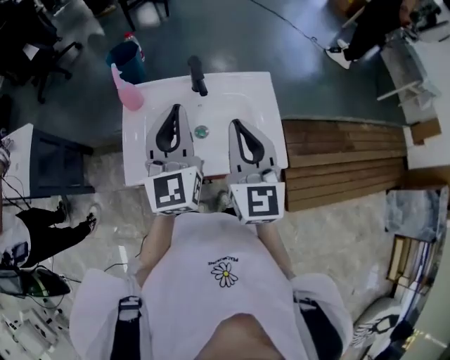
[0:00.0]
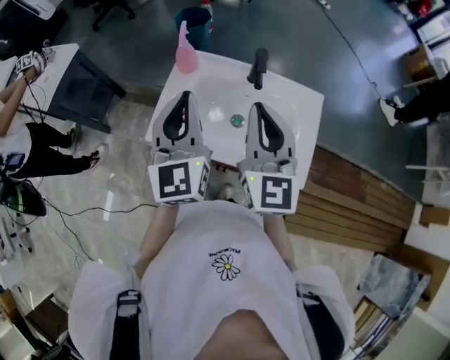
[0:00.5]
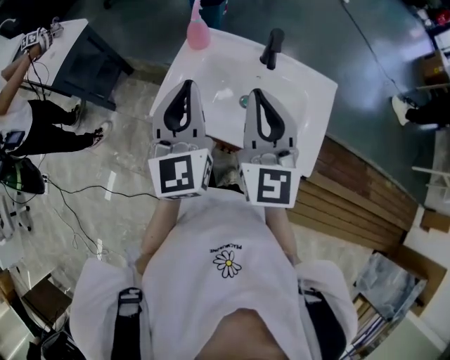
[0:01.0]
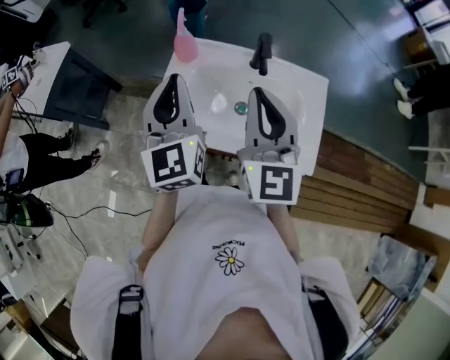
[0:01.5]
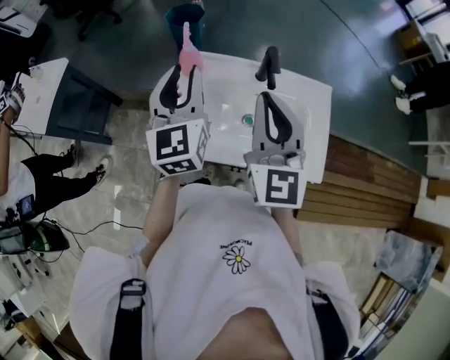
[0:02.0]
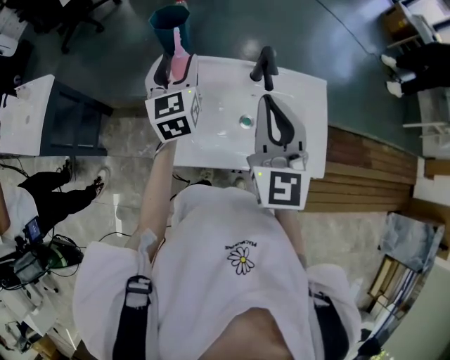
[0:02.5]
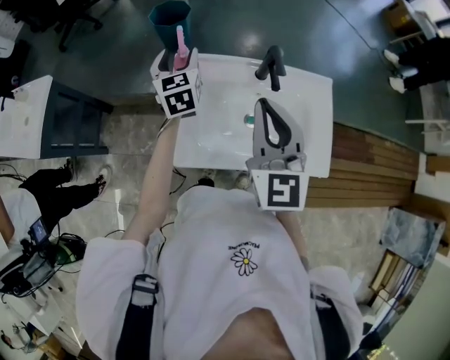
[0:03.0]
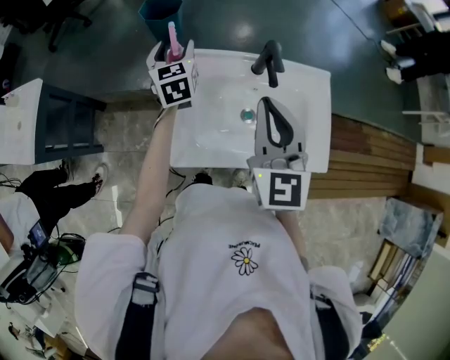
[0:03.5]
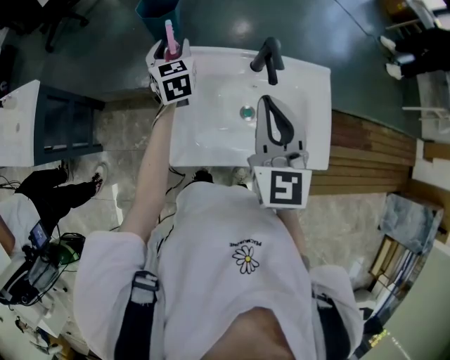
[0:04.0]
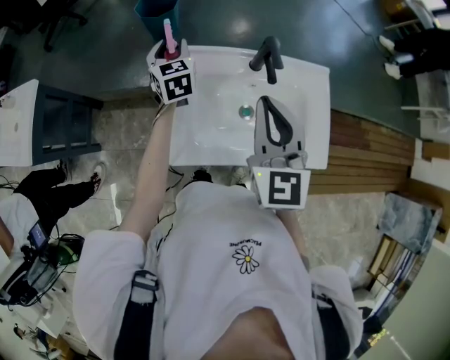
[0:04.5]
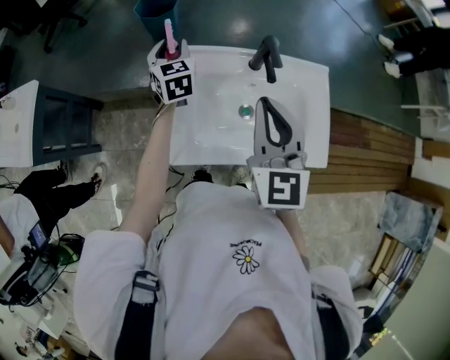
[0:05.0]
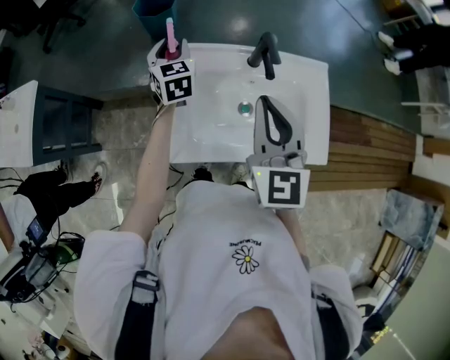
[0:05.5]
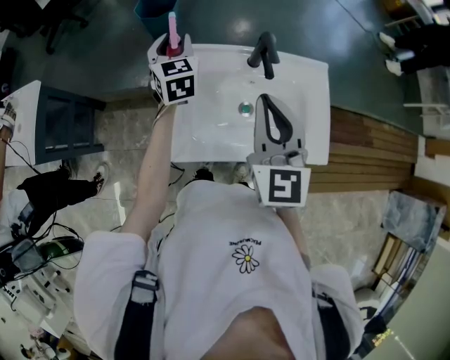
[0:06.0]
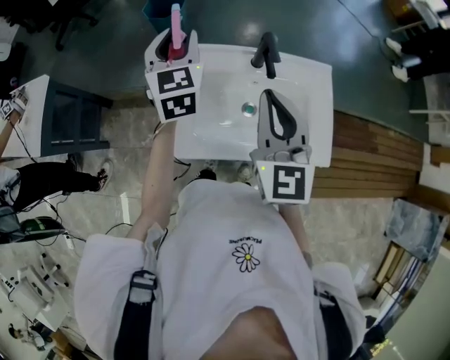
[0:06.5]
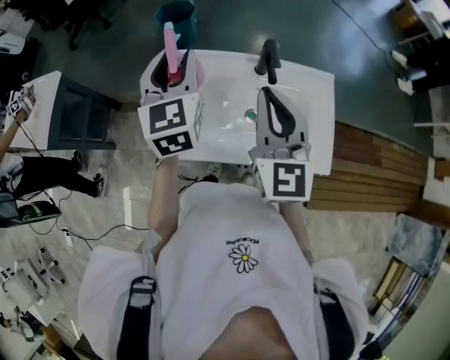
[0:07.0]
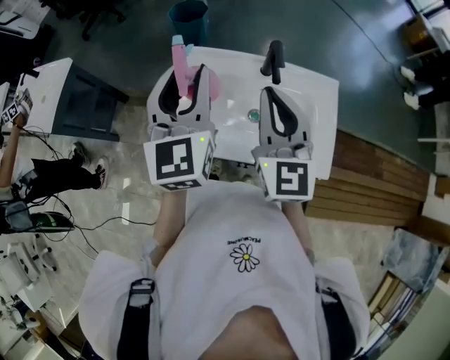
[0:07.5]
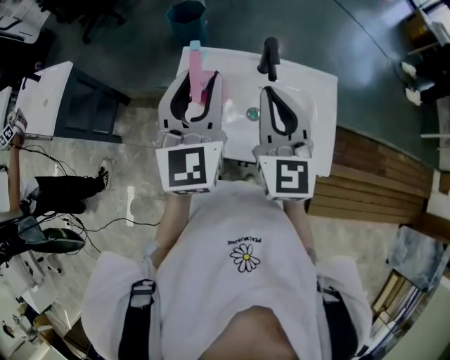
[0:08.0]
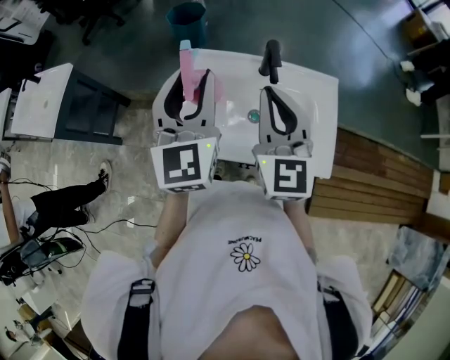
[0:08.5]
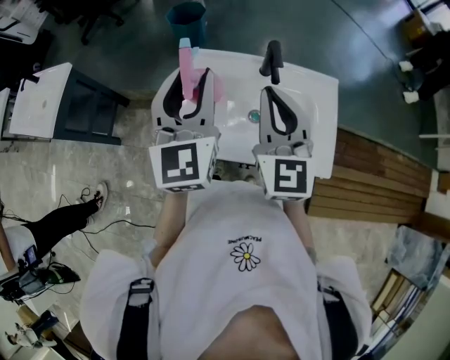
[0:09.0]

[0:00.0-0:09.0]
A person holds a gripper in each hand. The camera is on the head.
0:00.0 to 0:02.0: Both grippers travel together to the left and forward, some 15 cm. The left gripper opens.
0:02.0 to 0:04.5: The right gripper heads downward, covering about 5 cm; the left gripper heads forward and downward, covering some 25 cm, changes its angle by approximately 20 degrees, and opens, then closes once more.
0:04.5 to 0:07.0: The left gripper moves upward and backward, approximately 20 cm.
0:07.0 to 0:09.0: The left gripper travels backward by roughly 10 cm.

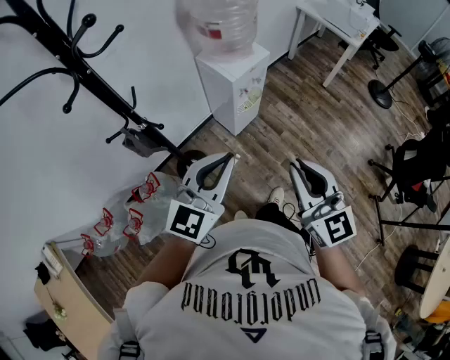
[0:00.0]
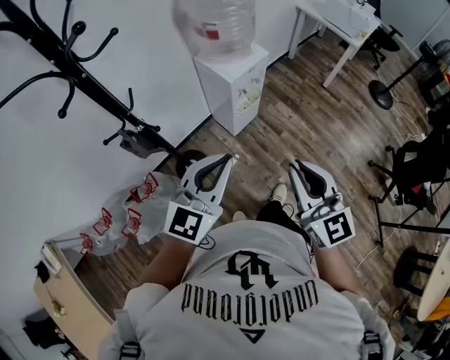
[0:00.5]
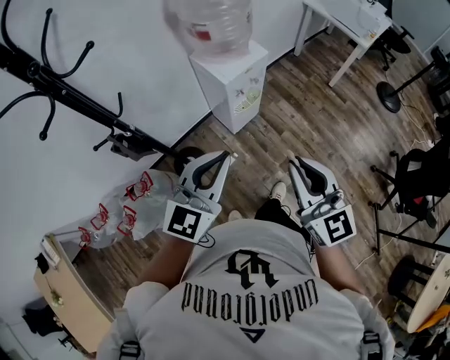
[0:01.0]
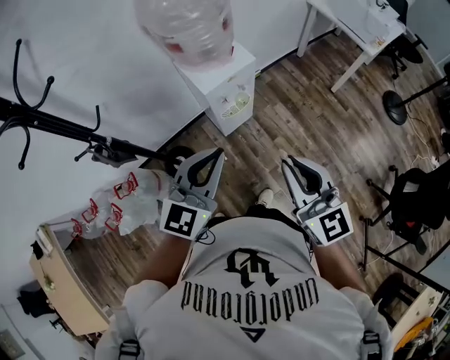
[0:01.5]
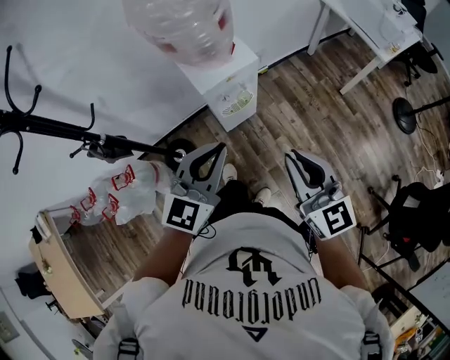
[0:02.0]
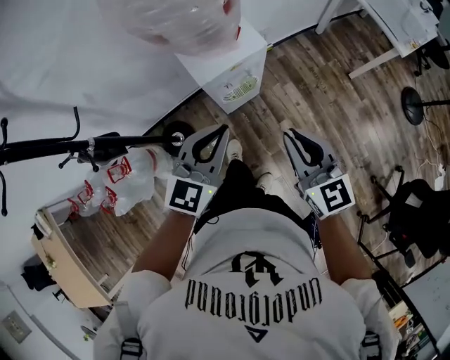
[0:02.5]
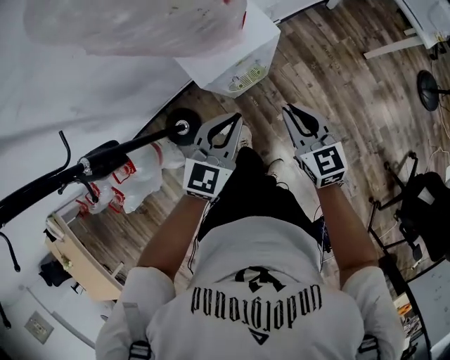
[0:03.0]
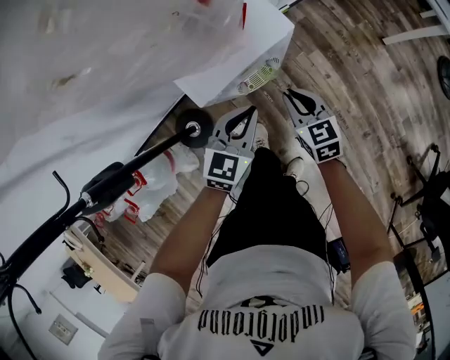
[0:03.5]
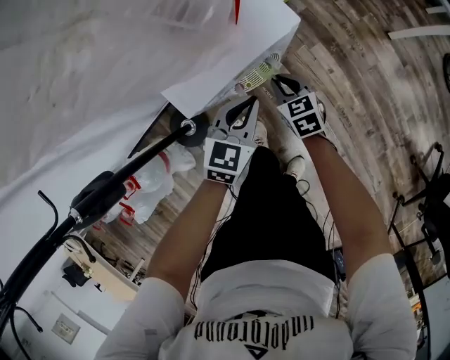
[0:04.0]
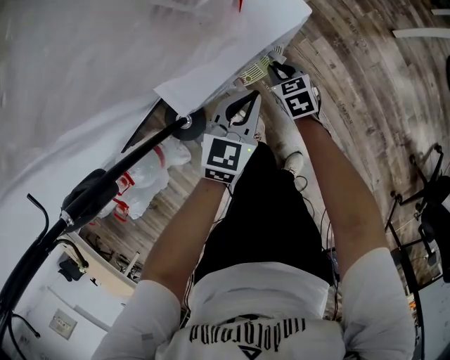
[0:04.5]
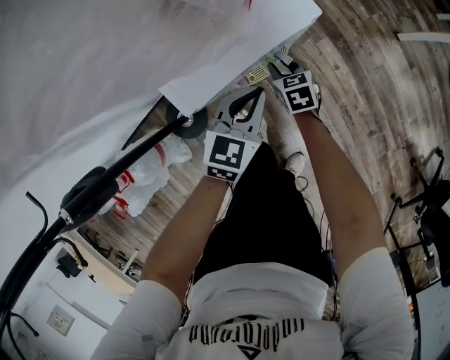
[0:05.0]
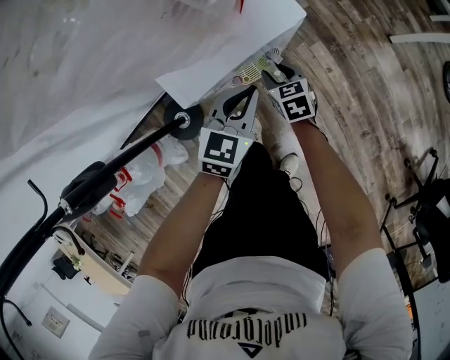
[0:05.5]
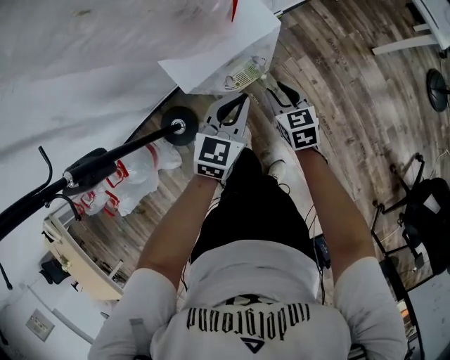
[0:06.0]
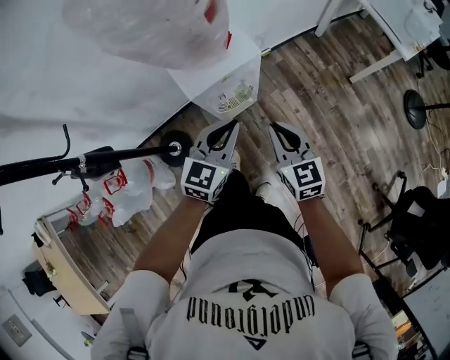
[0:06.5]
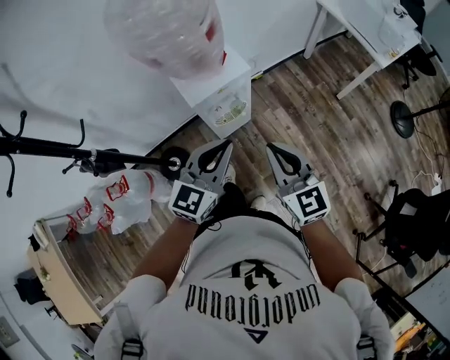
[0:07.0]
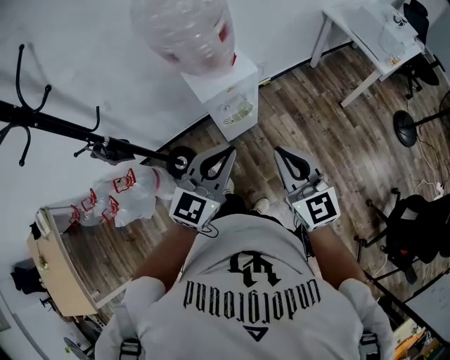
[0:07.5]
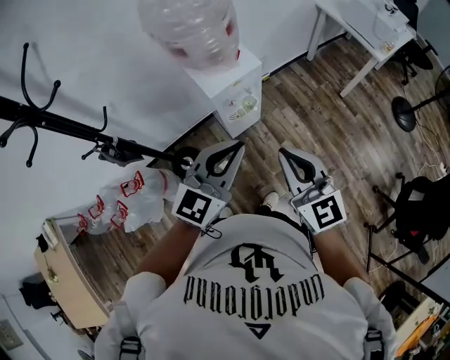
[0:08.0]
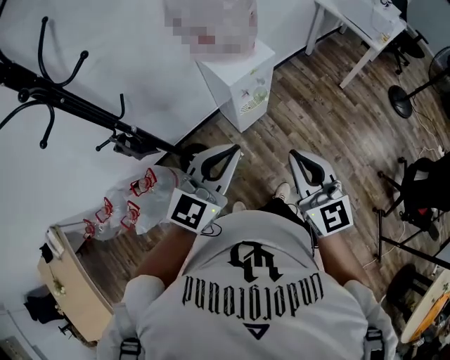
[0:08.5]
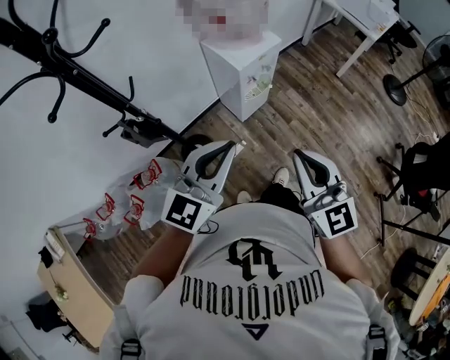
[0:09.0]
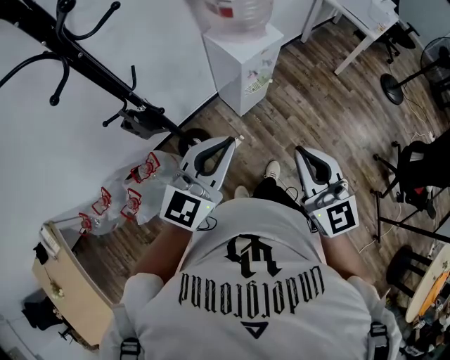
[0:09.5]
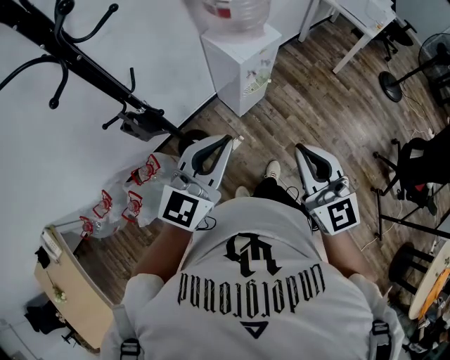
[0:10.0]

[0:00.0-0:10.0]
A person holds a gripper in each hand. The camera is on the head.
0:00.0 to 0:02.0: The grippers both shift forward and to the right by approximately 30 cm.
0:02.0 to 0:04.0: The two grippers go approximately 60 cm downward and forward. The left gripper turns by roughly 30 degrees. The right gripper tips its fingers downward by some 40 degrees.
0:04.0 to 0:06.0: The right gripper travels upward and backward by about 10 cm. Meanwhile the left gripper goes roughly 10 cm upward.
0:06.0 to 0:08.0: Both grippers move upward and backward, about 50 cm. The right gripper angles its fingers upward, by about 30 degrees, and closes up. Meanwhile the left gripper swivels approximately 20 degrees.
0:08.0 to 0:10.0: The two grippers go roughly 25 cm to the left and backward.

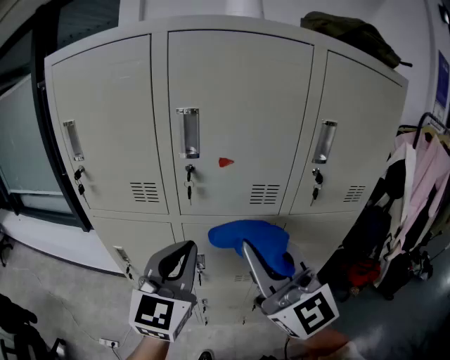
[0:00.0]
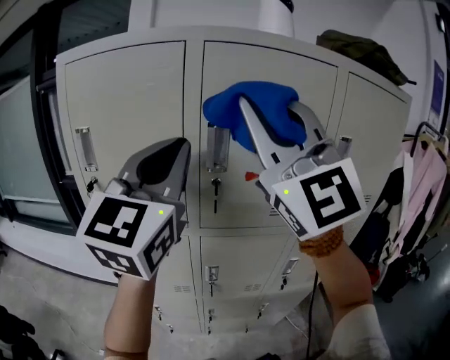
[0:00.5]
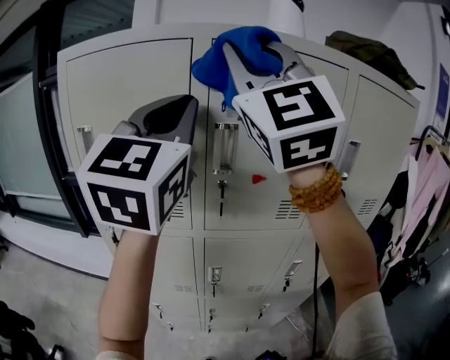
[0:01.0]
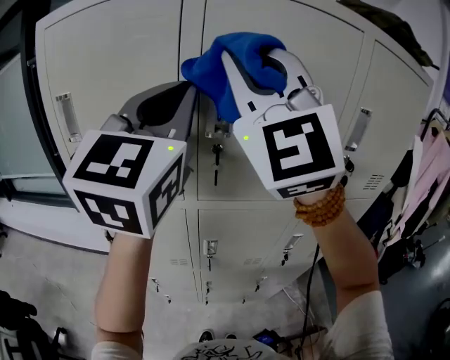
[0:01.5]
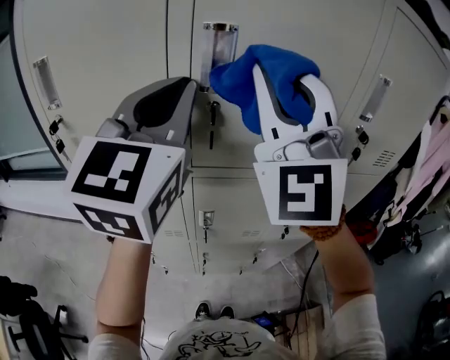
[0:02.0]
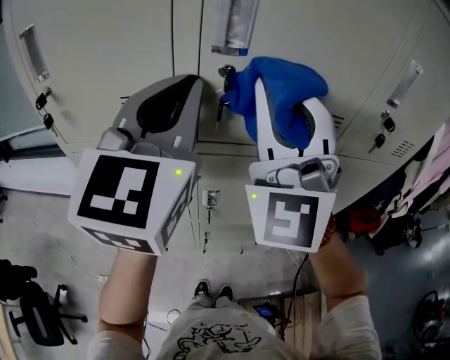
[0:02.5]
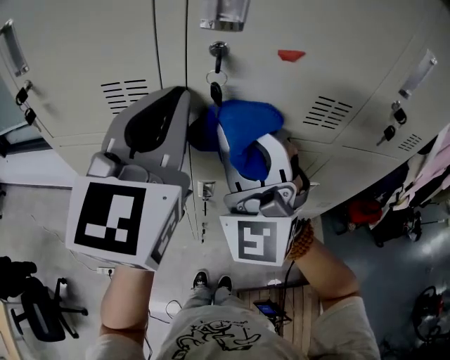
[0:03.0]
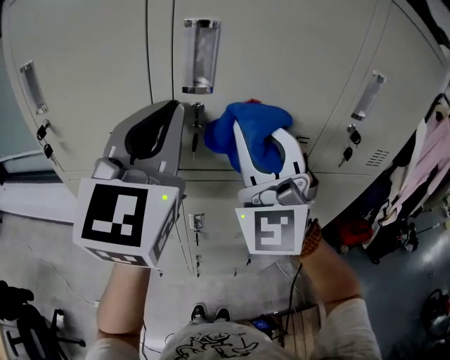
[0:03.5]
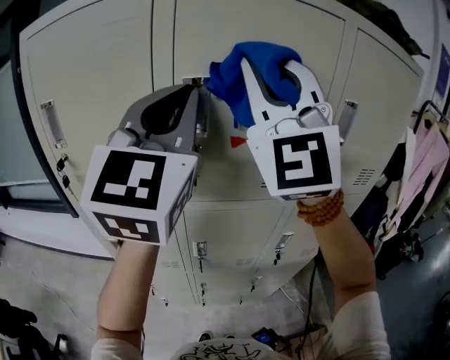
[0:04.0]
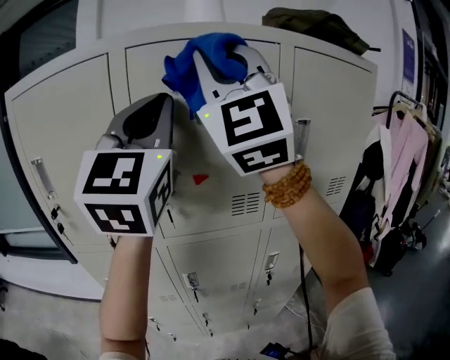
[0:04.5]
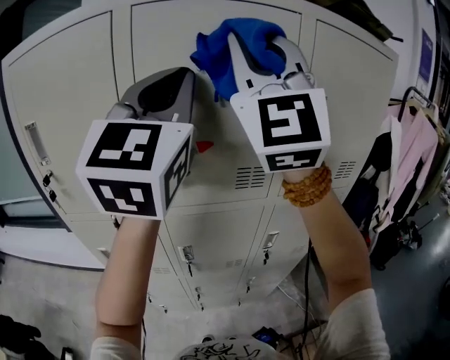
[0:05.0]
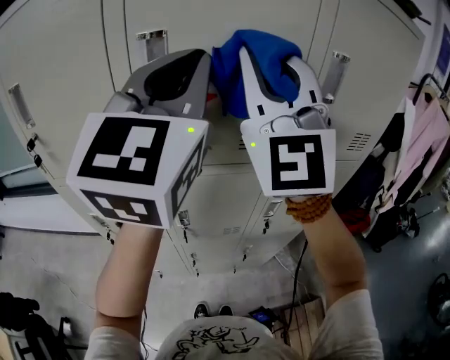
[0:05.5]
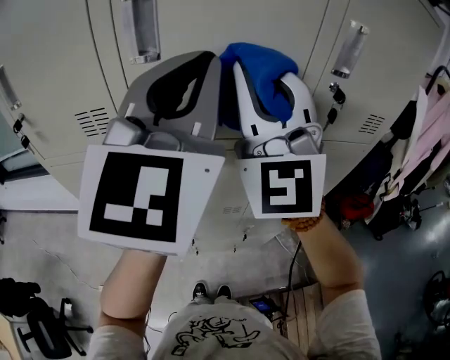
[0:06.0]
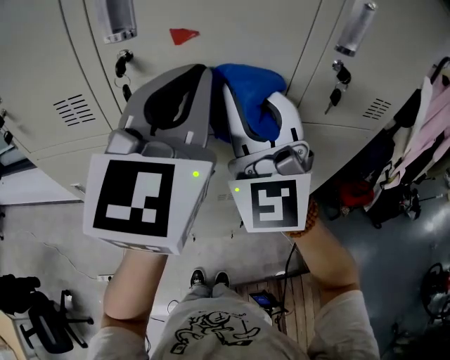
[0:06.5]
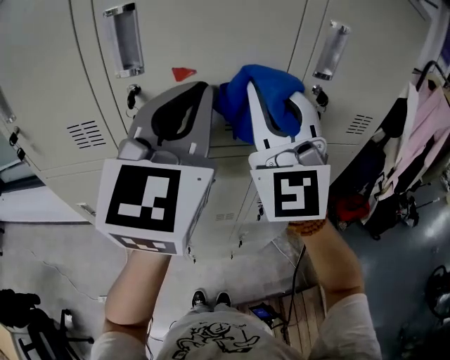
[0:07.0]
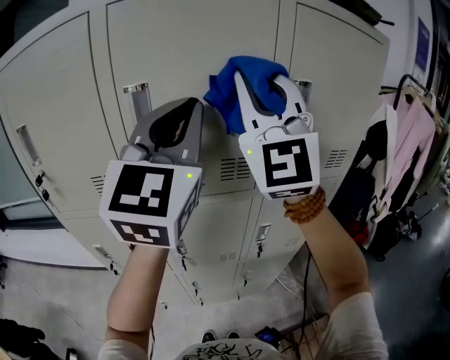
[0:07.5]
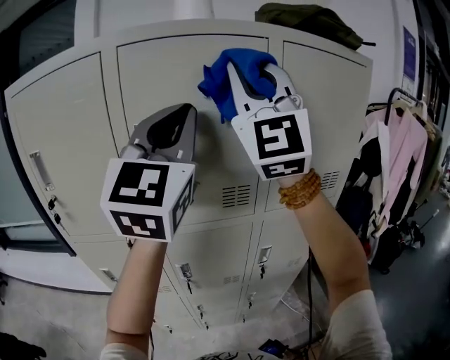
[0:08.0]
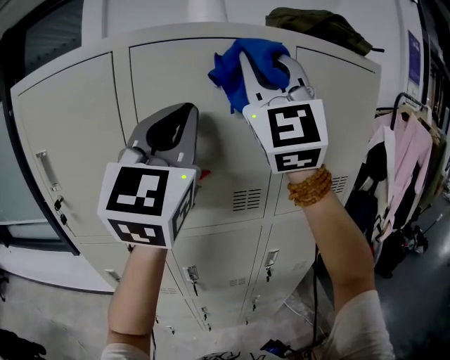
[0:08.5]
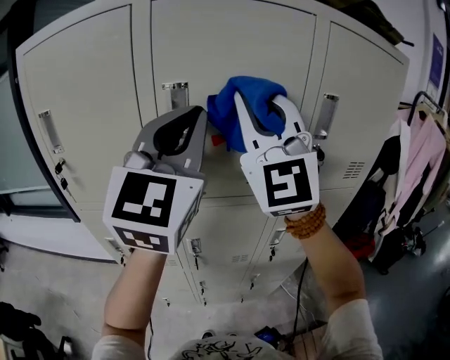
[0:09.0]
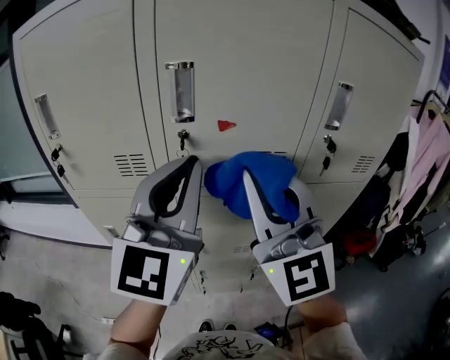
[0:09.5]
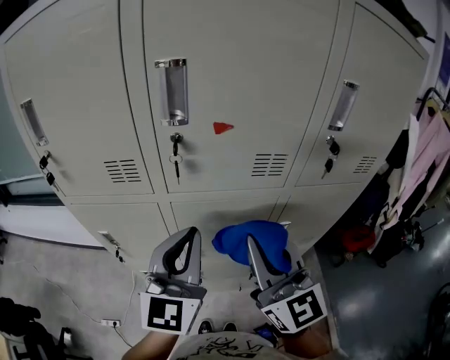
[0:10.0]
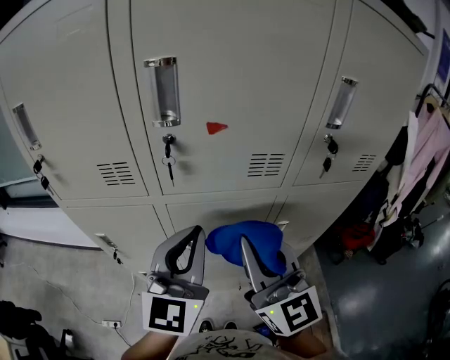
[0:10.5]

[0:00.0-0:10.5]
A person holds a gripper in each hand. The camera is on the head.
0:00.0 to 0:02.0: The right gripper moves forward and upward, approximately 20 cm, and rotates approximately 40 degrees. Meanwhile the left gripper moves upward and forward, some 20 cm.
0:02.0 to 0:04.0: The right gripper moves approximately 20 cm downward and comes back; the left gripper travels upward by roughly 5 cm.
0:04.0 to 0:06.5: The right gripper travels downward by roughly 20 cm; the left gripper heads downward and to the right, covering about 15 cm.
0:06.5 to 0:08.5: The right gripper moves upward, approximately 30 cm. Meanwhile the left gripper heads upward, covering approximately 20 cm.
0:08.5 to 0:10.5: The grippers both shift downward by roughly 35 cm. The right gripper twists roughly 40 degrees clockwise, seen from behind. The left gripper rotates approximately 20 degrees.
